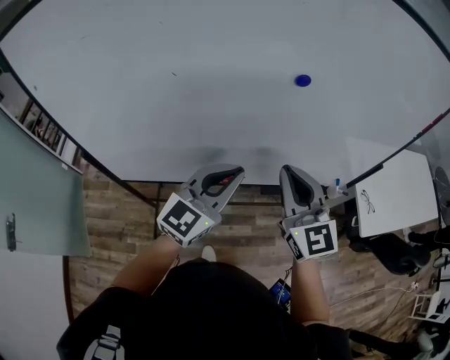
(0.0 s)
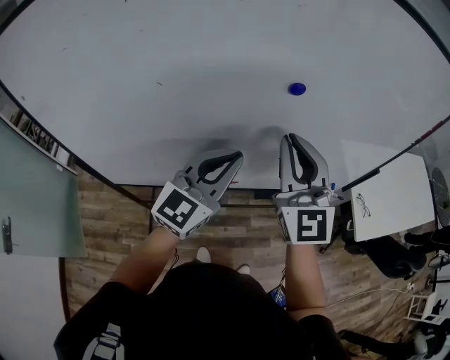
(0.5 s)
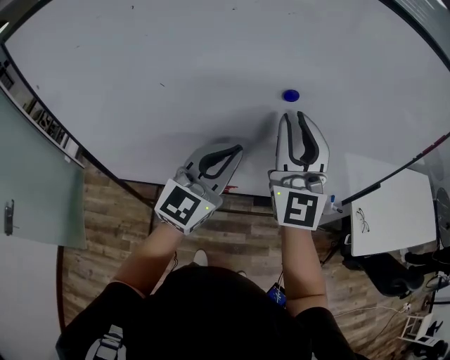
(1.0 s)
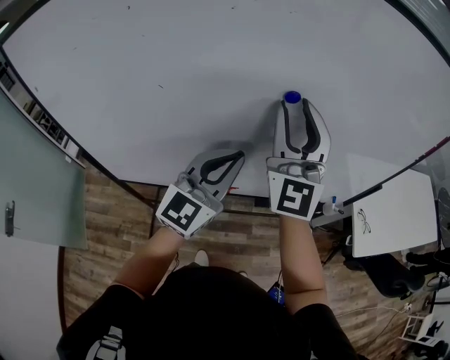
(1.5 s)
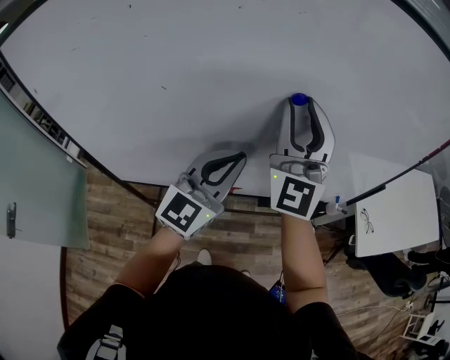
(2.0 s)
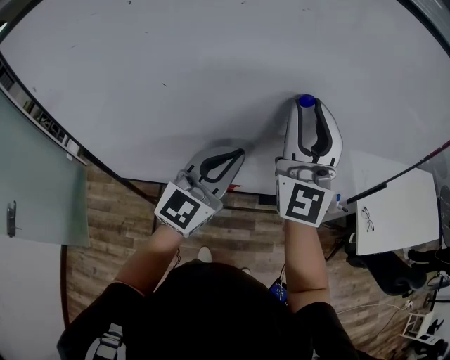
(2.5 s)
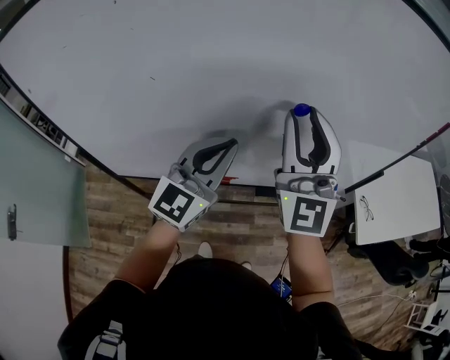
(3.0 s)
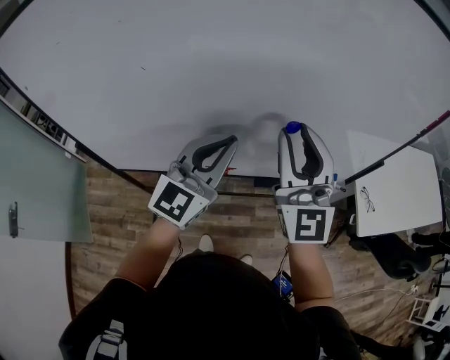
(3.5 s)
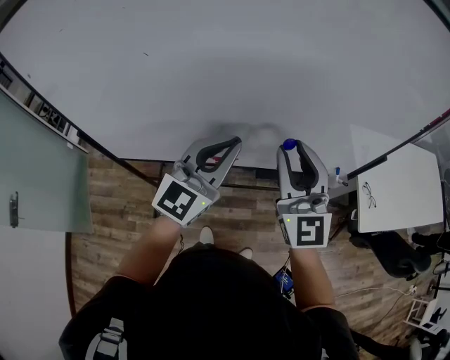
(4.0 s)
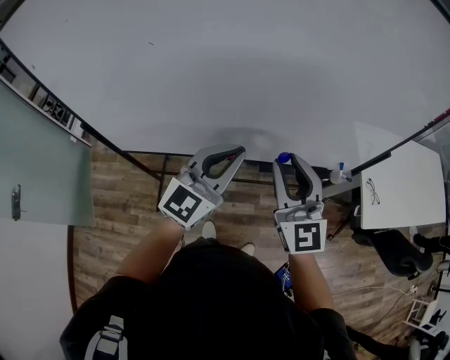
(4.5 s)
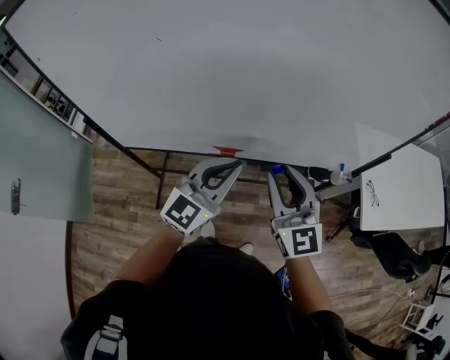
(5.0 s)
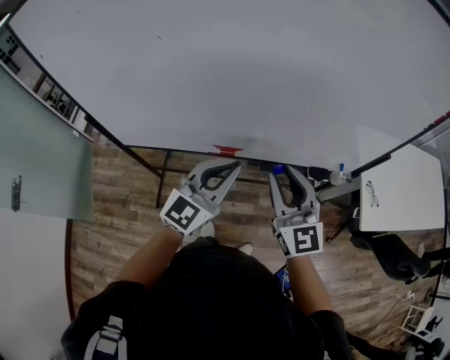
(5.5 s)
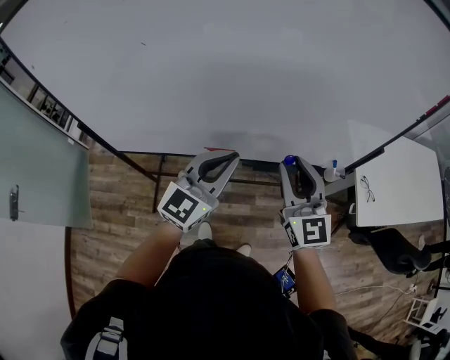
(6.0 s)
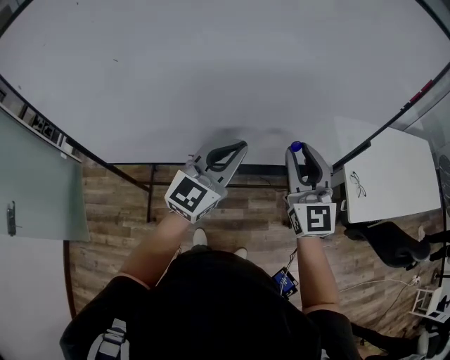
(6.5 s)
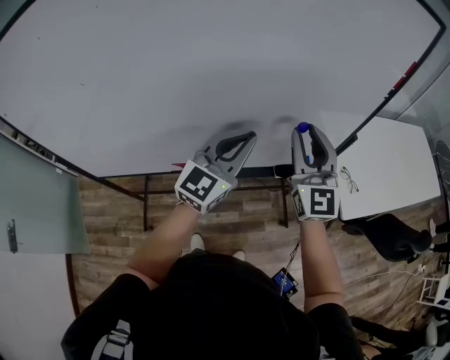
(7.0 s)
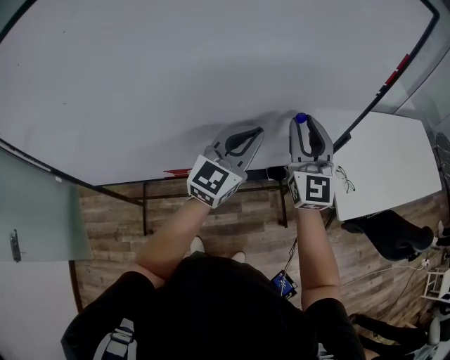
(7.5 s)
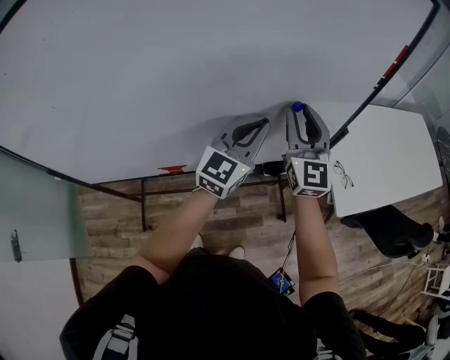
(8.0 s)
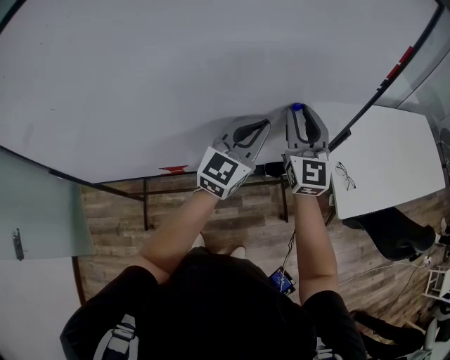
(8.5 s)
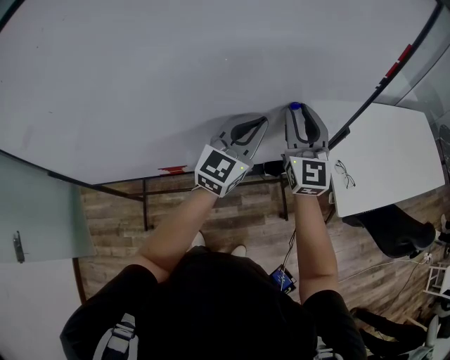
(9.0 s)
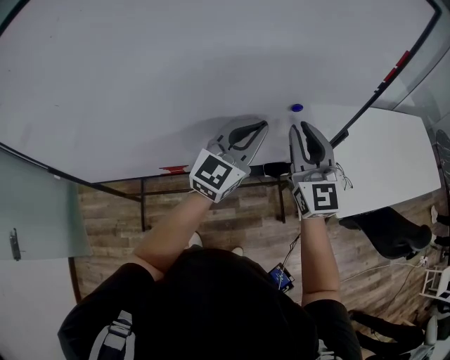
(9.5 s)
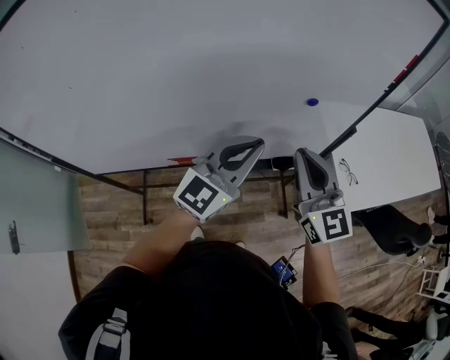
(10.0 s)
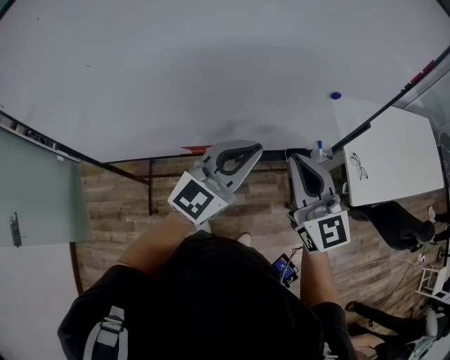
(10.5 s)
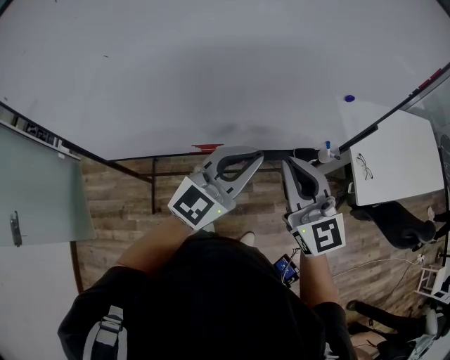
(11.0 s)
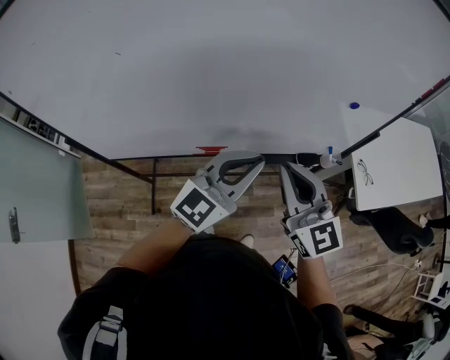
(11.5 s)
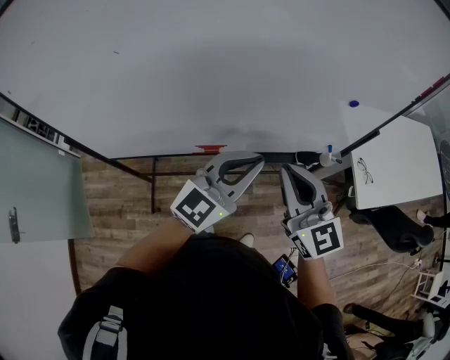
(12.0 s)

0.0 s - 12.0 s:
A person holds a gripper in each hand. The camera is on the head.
0.0 s - 2.0 s: The left gripper moves forward, about 5 cm; the right gripper heads upward and forward, covering approximately 20 cm, rotates approximately 40 degrees, and opens up.
2.0 s - 4.0 s: The left gripper shifts by about 5 cm. Meanwhile the right gripper heads downward, backward and to the right, covering approximately 15 cm, and swivels about 30 degrees.
4.0 s - 6.0 s: Both grippers travel together downward, about 5 cm.
6.0 s - 8.0 s: The left gripper shifts some 30 cm to the right and forward. The right gripper goes roughly 25 cm forward and to the right.
8.0 s - 10.0 s: The two grippers go roughly 15 cm backward. The right gripper closes.
10.0 s - 12.0 s: The two grippers go some 15 cm to the left and backward.

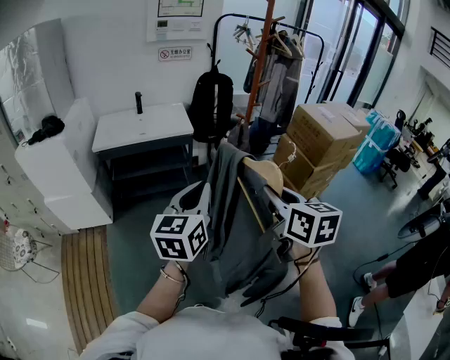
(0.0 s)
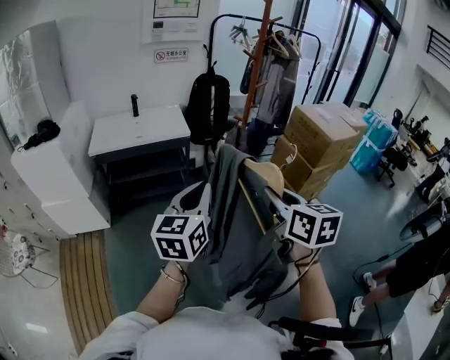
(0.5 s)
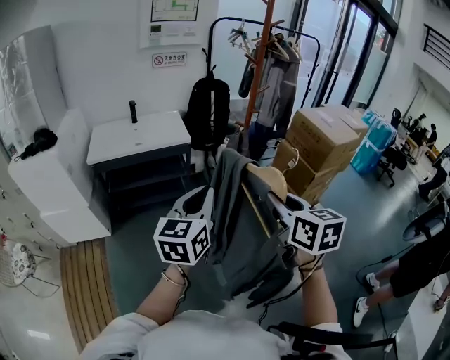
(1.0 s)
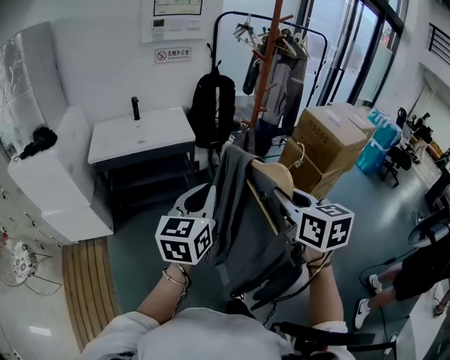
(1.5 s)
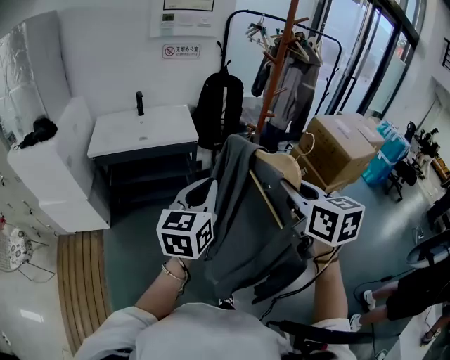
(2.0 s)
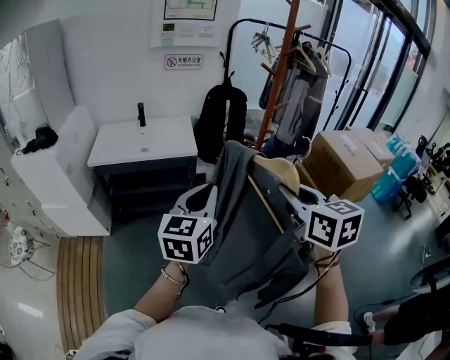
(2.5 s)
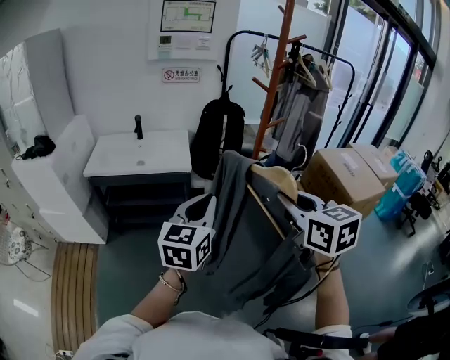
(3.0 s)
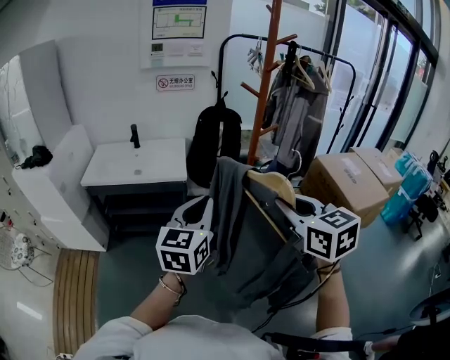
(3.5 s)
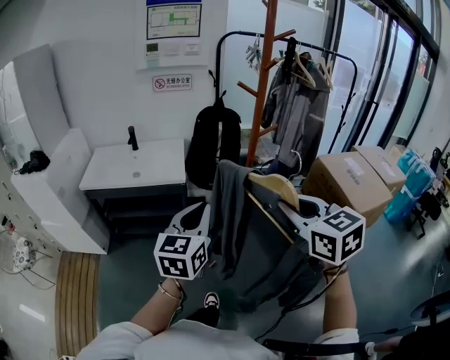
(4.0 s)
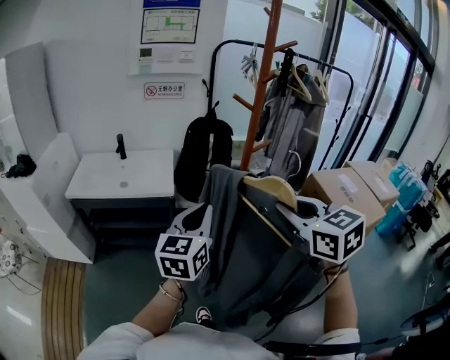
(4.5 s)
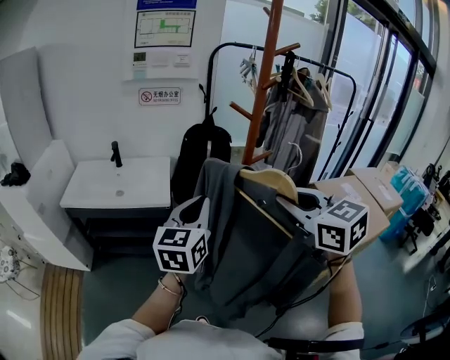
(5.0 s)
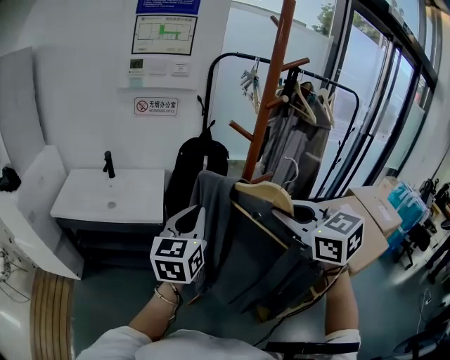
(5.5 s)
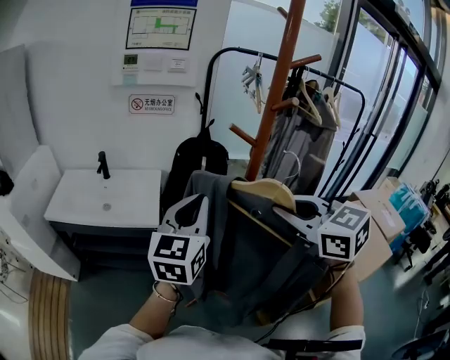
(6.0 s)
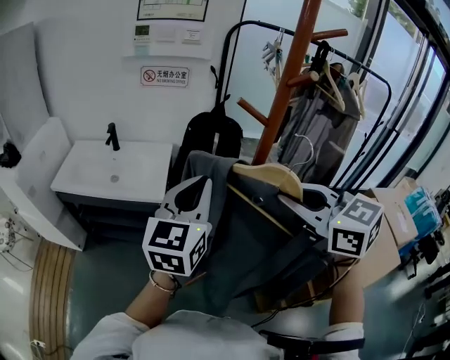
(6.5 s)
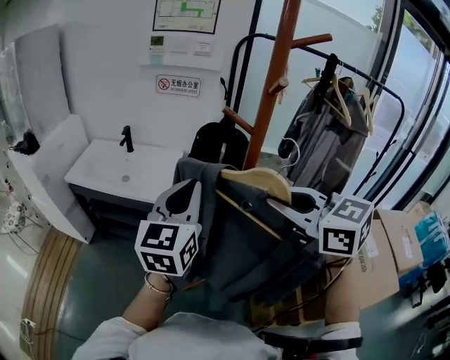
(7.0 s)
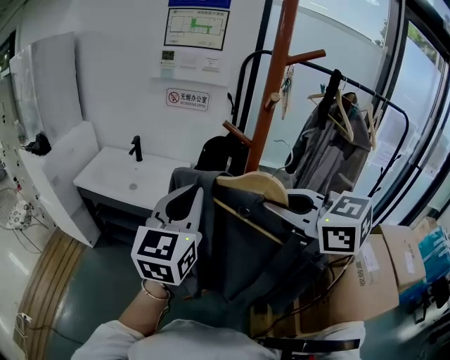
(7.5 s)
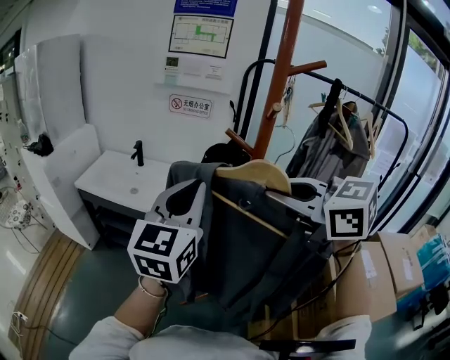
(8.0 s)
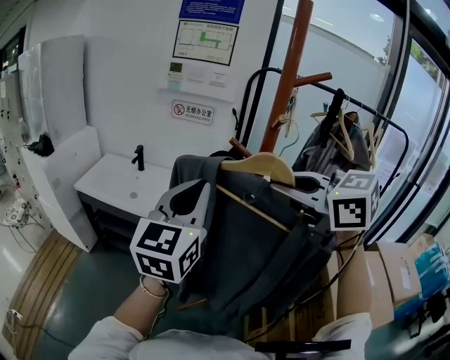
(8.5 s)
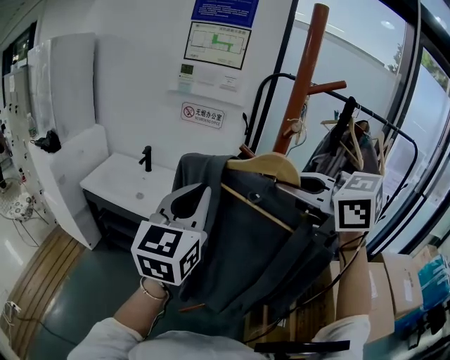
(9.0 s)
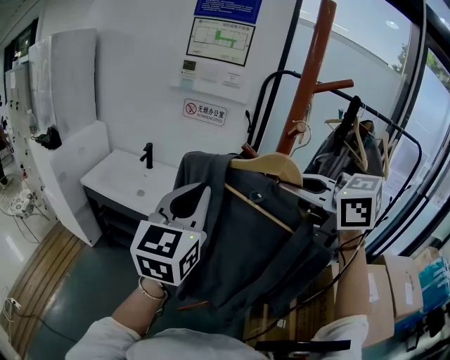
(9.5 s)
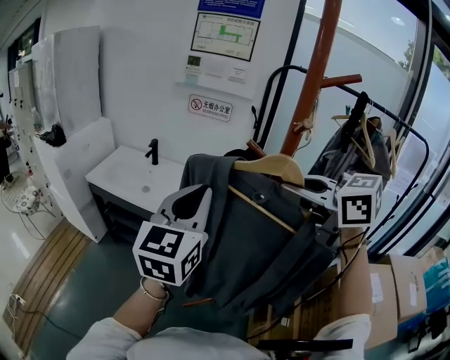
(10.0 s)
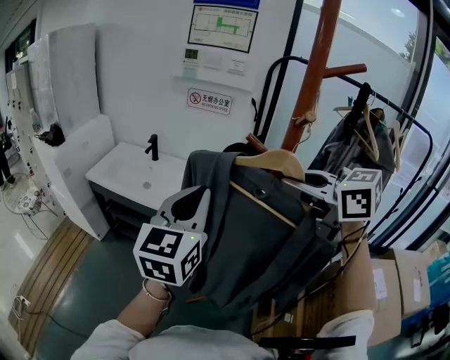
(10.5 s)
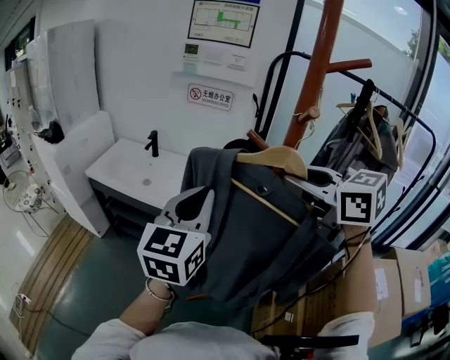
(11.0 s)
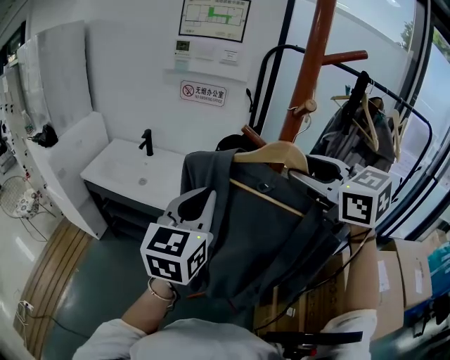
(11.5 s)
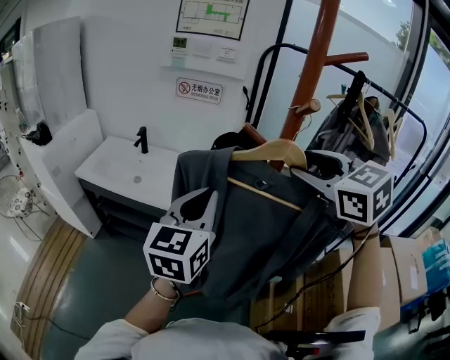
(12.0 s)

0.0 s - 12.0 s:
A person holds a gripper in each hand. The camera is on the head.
0.0 s - 2.0 s: The grippers both shift forward by some 15 cm.
2.0 s - 4.0 s: Both grippers travel together to the right and forward, about 25 cm. The right gripper turns by roughly 20 degrees.
4.0 s - 6.0 s: The two grippers go approximately 20 cm forward.
6.0 s - 8.0 s: The two grippers go approximately 5 cm upward. The right gripper turns by roughly 30 degrees.
8.0 s - 10.0 s: The right gripper moves forward, some 10 cm.
10.0 s - 12.0 s: The right gripper moves about 5 cm, swivels about 30 degrees, and opens its fingers, while the left gripper moves downward, roughly 5 cm.

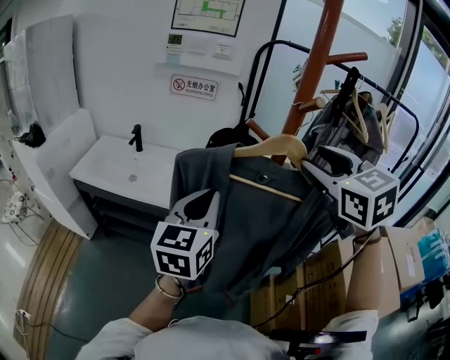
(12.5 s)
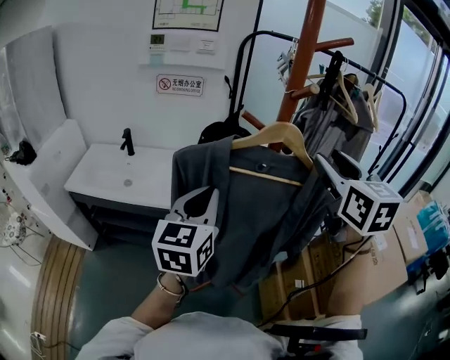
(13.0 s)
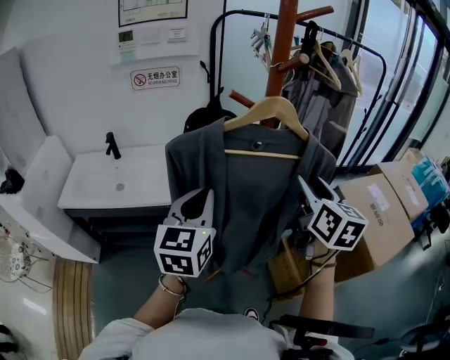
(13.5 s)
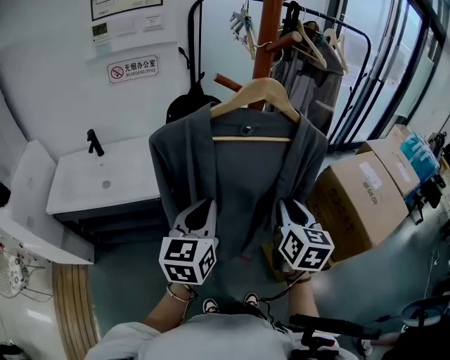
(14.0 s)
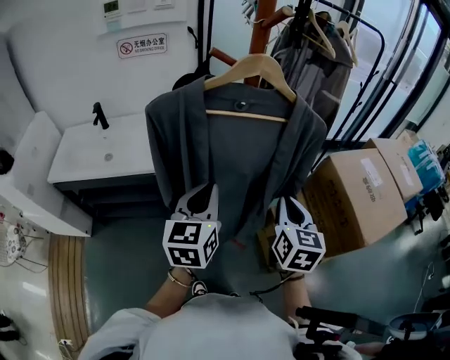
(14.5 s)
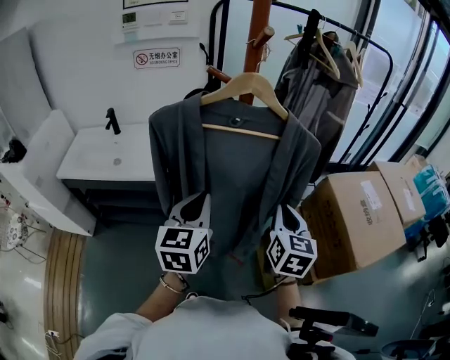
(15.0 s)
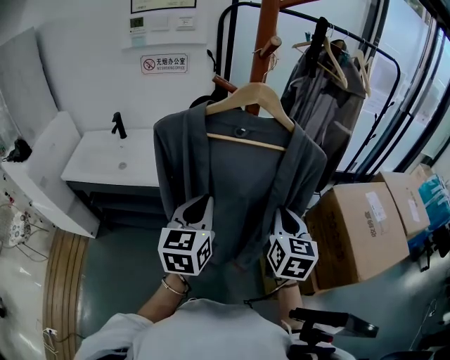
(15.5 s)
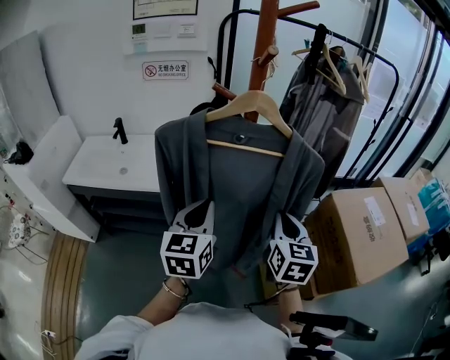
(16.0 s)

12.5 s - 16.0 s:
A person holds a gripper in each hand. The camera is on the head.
12.5 s - 14.5 s: The right gripper is displaced downward by some 25 cm, turns by about 50 degrees, and closes its fingers. Meanwhile the left gripper is displaced downward by some 10 cm.
14.5 s - 16.0 s: The grippers move only a little.
